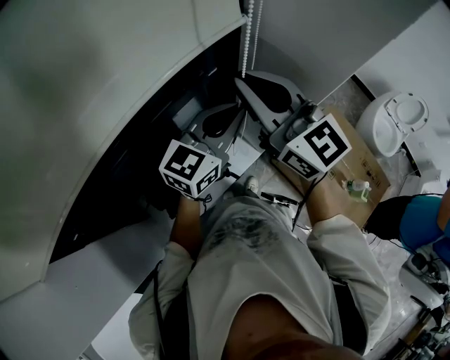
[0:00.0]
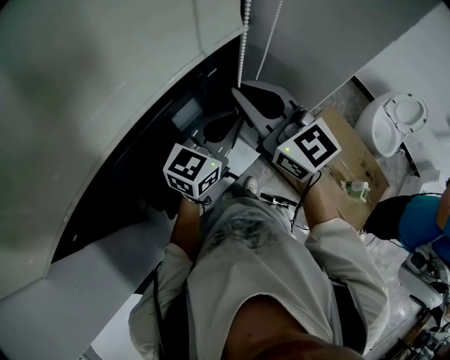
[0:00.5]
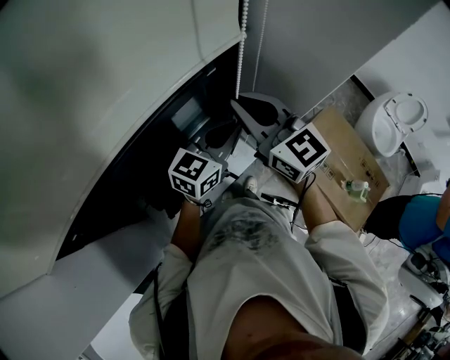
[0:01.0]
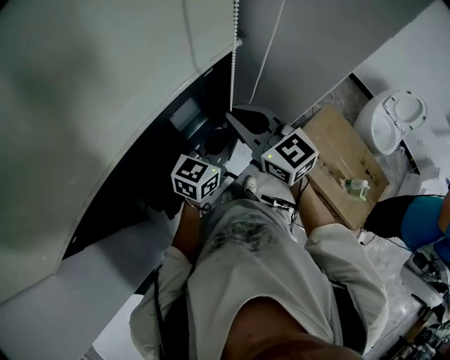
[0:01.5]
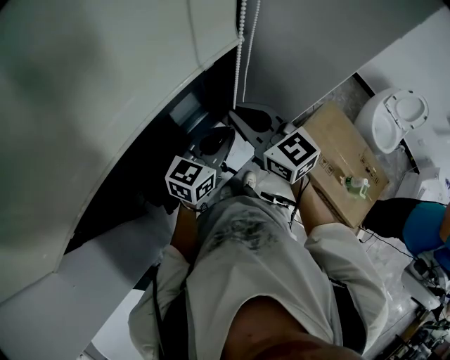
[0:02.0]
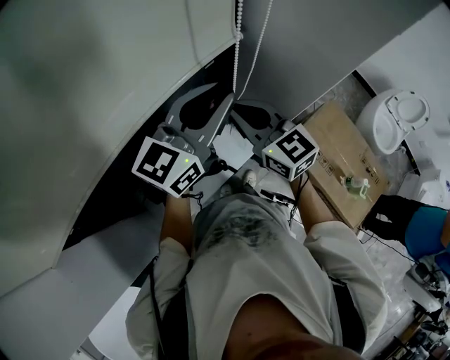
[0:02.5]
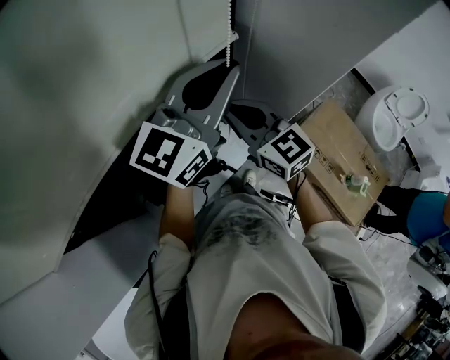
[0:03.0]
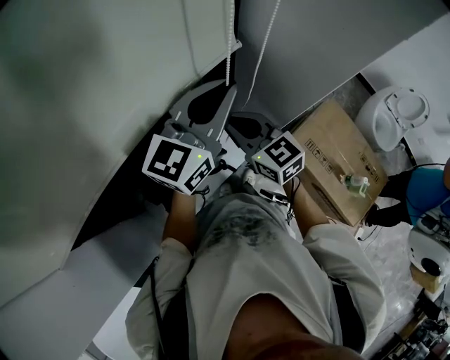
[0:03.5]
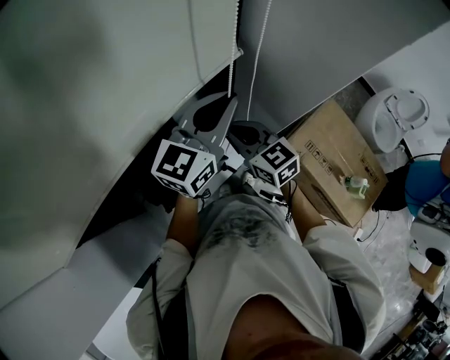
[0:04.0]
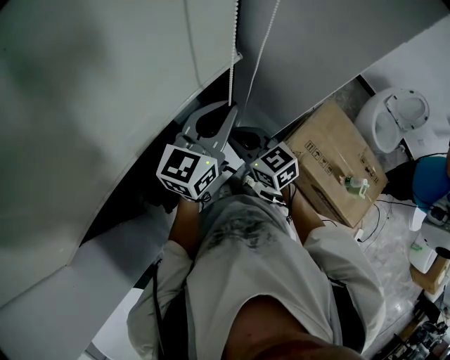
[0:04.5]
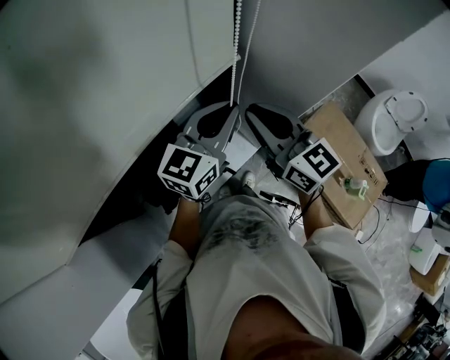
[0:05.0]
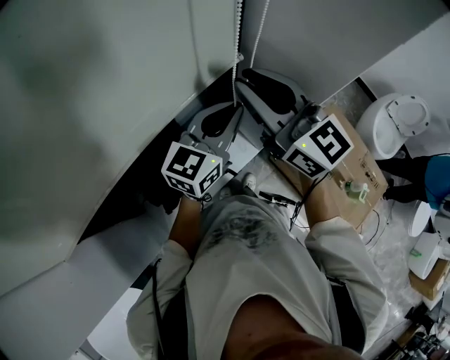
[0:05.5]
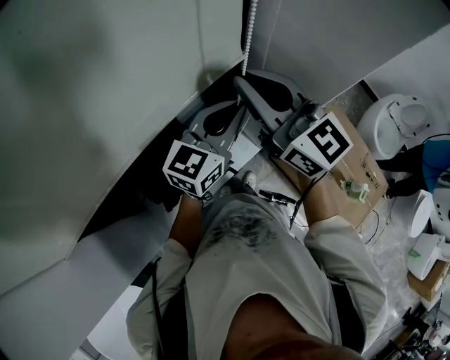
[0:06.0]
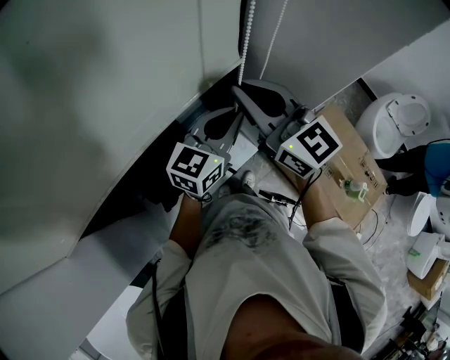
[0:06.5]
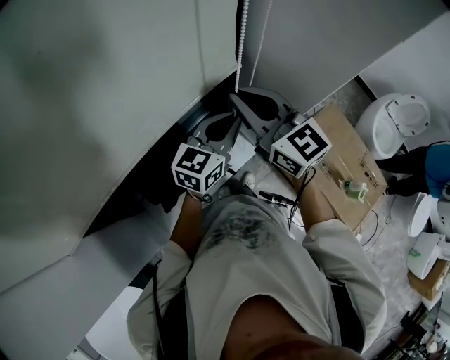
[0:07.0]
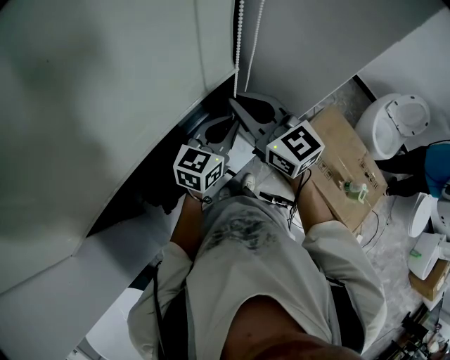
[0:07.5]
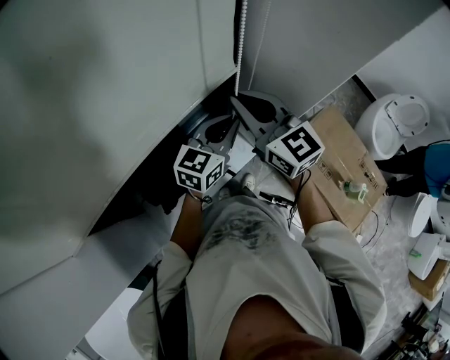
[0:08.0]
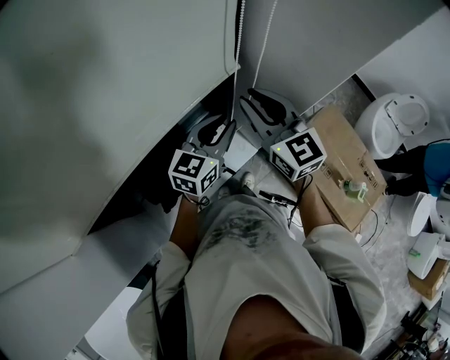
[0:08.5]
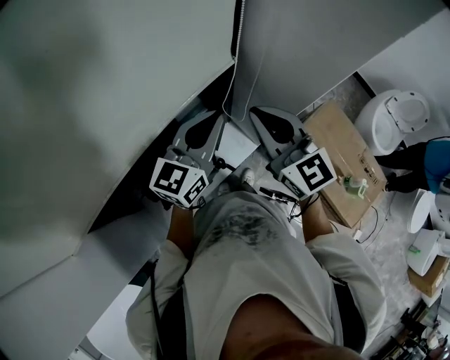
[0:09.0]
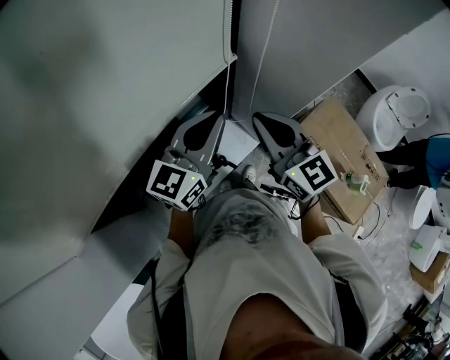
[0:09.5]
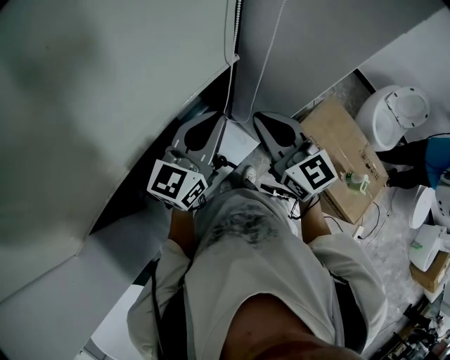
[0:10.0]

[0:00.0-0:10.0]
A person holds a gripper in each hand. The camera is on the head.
0:00.0 to 0:02.0: The grippers both shift downward by about 10 cm.
0:02.0 to 0:04.0: The right gripper shifts some 10 cm downward. Meanwhile the left gripper goes approximately 10 cm upward.
0:04.0 to 0:06.0: The right gripper shifts about 20 cm upward, and changes its angle by about 30 degrees.
0:06.0 to 0:08.0: Both grippers travel together downward, approximately 10 cm.
0:08.0 to 0:10.0: The right gripper moves backward, approximately 5 cm. Meanwhile the left gripper heads upward, covering approximately 10 cm.

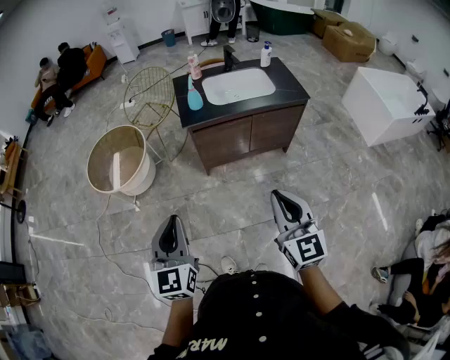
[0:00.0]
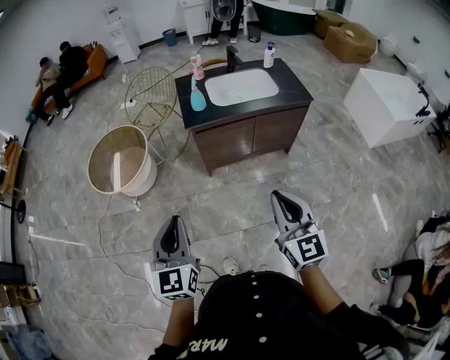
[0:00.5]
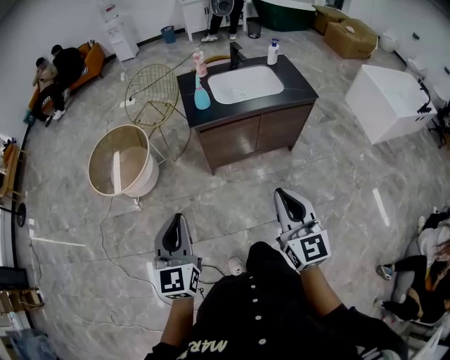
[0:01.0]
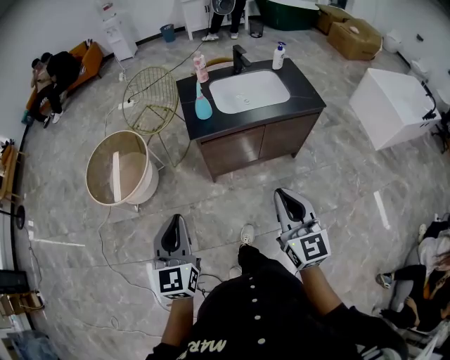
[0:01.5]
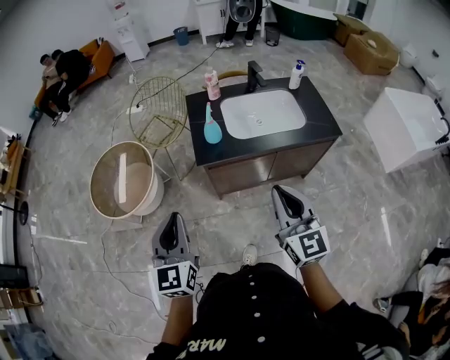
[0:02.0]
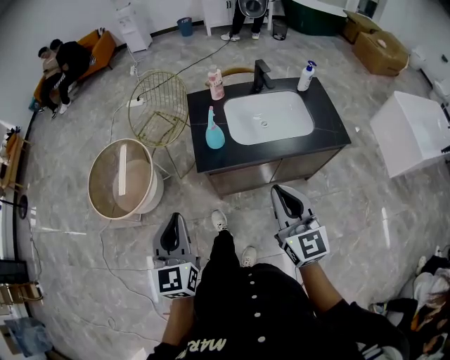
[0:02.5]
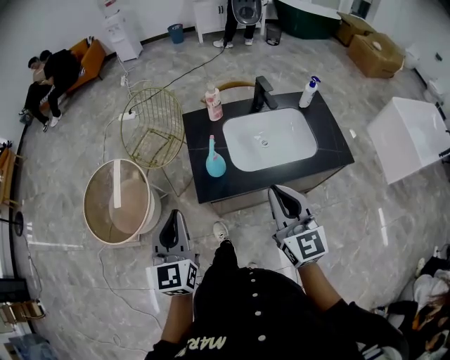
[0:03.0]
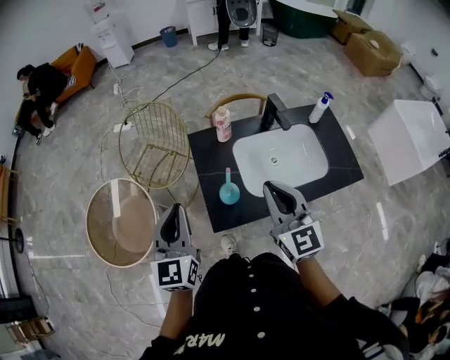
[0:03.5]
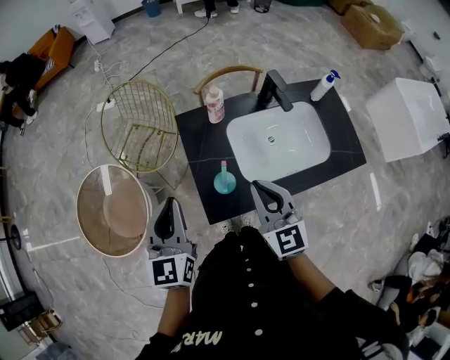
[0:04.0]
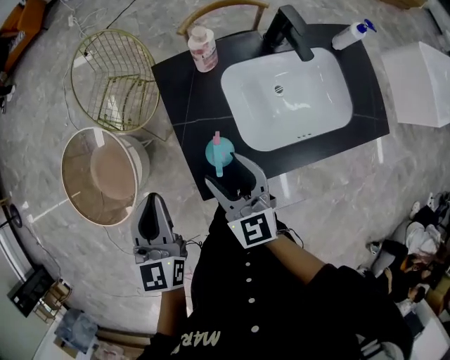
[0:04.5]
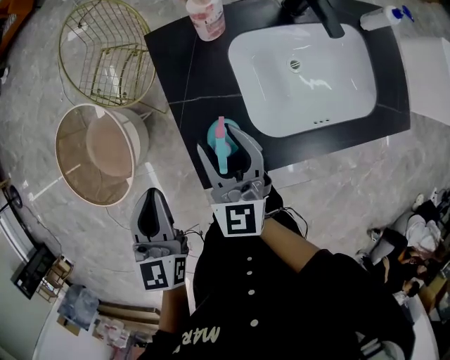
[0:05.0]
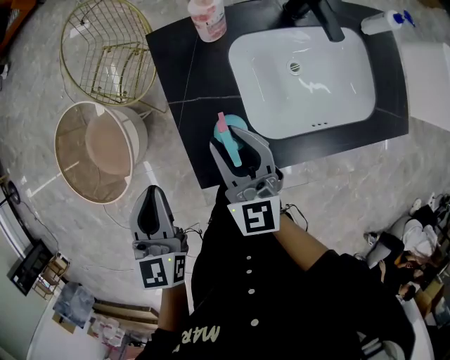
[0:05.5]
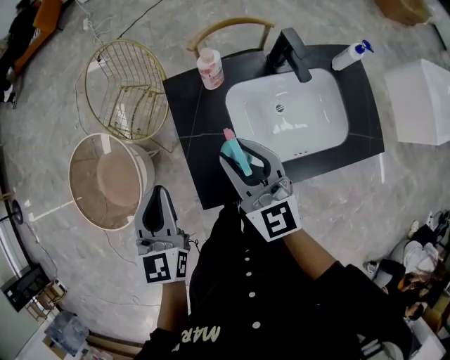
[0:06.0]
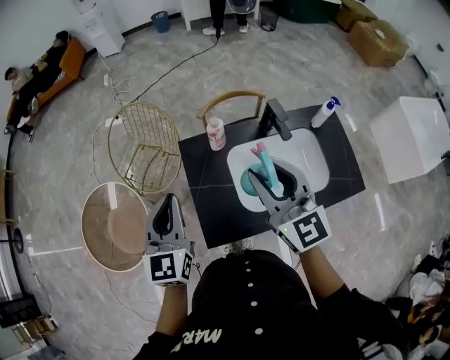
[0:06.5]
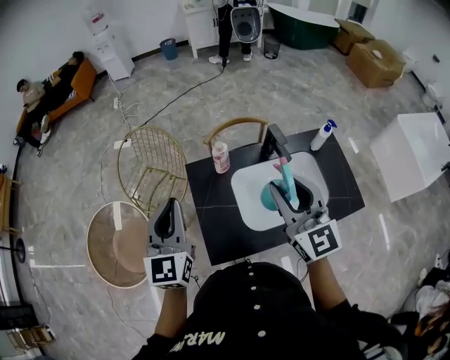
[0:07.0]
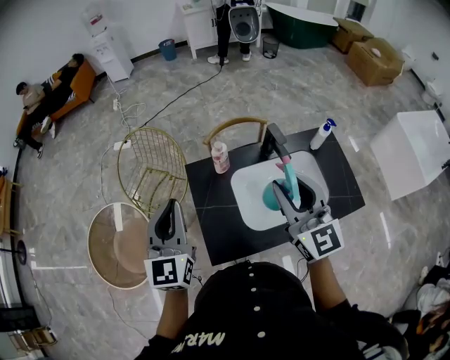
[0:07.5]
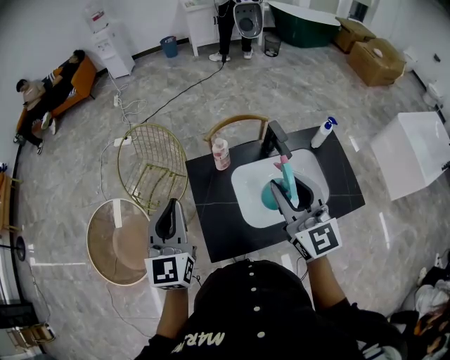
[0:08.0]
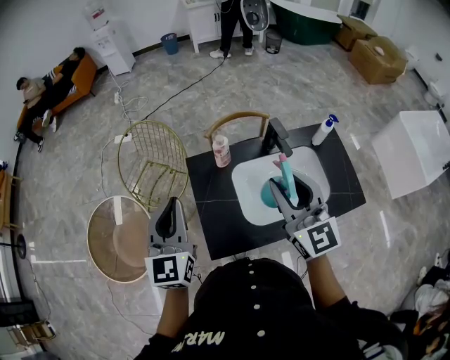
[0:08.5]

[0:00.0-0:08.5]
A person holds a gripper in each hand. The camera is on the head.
0:00.0 to 0:02.0: Both grippers travel together forward, some 25 cm.
0:02.0 to 0:04.0: Both grippers move forward, some 35 cm.
0:04.0 to 0:06.5: The left gripper moves forward, approximately 5 cm, and goes downward and returns, some 15 cm each way; the right gripper goes roughly 15 cm upward and forward, and opens.
0:06.5 to 0:08.5: There are only small adjustments of the grippers.

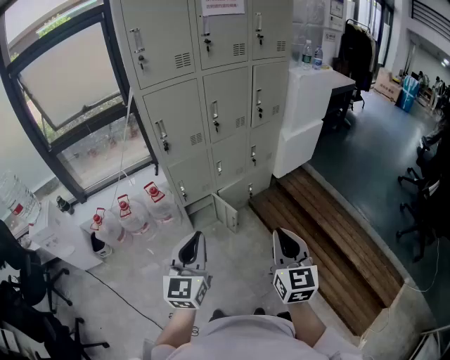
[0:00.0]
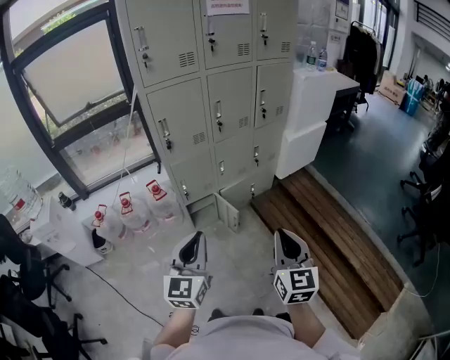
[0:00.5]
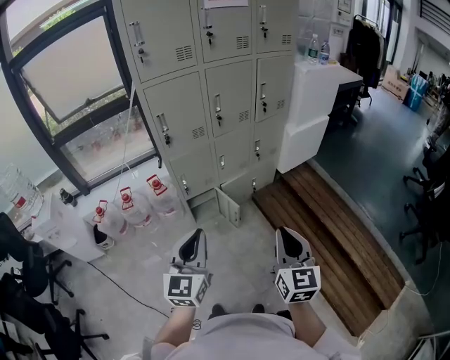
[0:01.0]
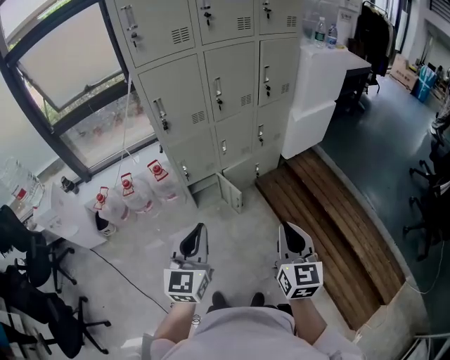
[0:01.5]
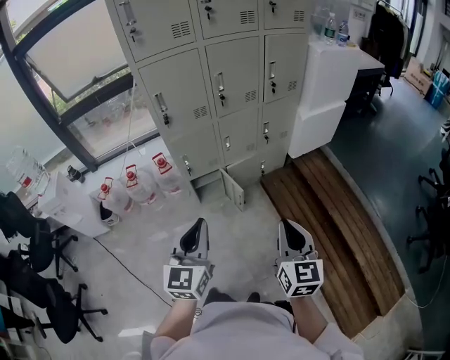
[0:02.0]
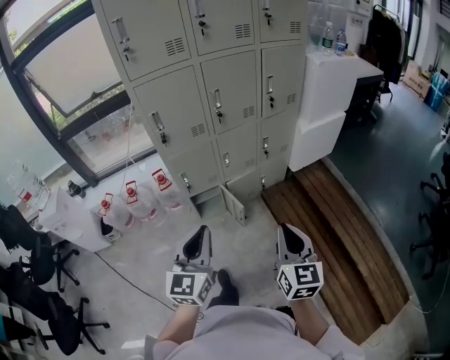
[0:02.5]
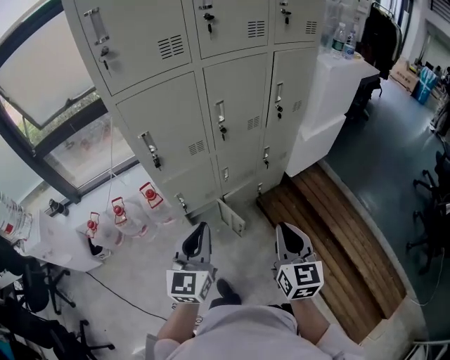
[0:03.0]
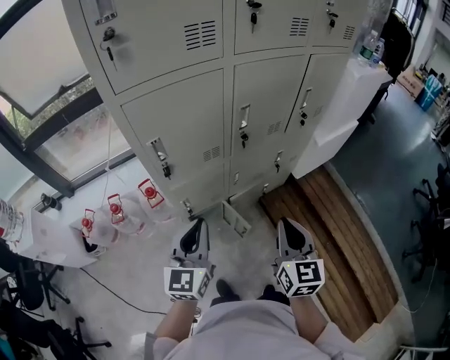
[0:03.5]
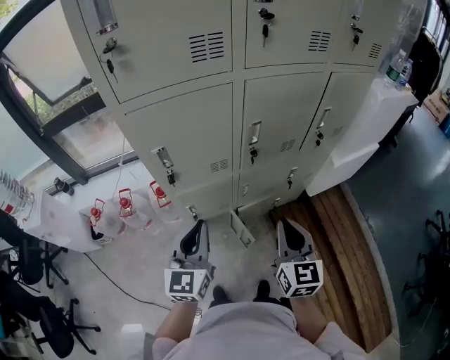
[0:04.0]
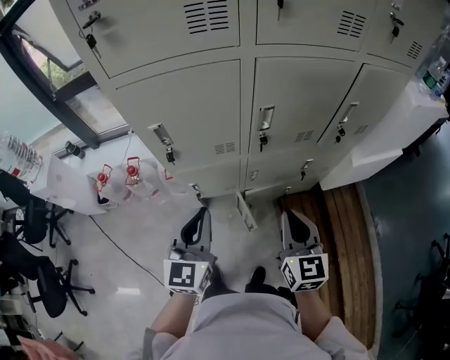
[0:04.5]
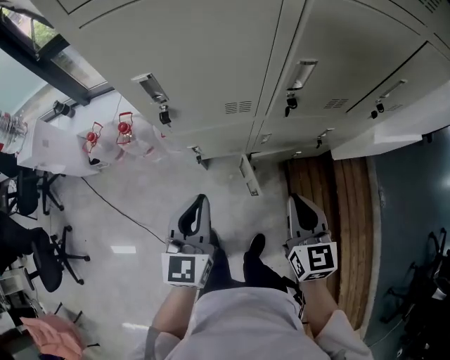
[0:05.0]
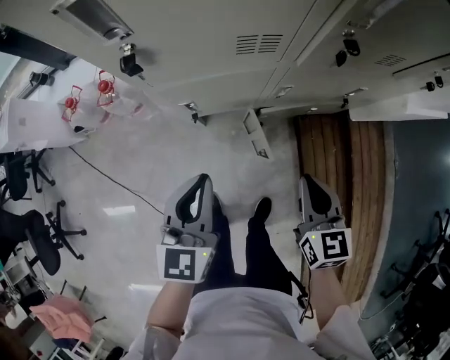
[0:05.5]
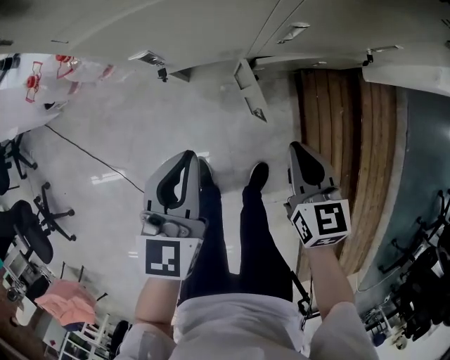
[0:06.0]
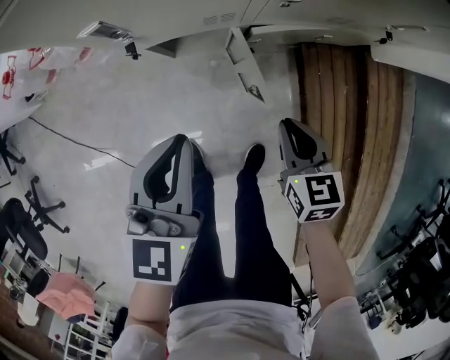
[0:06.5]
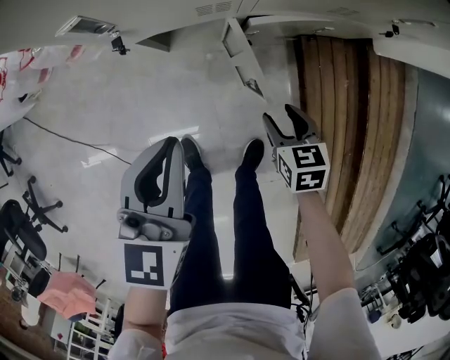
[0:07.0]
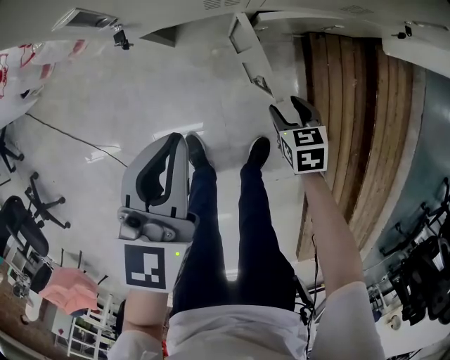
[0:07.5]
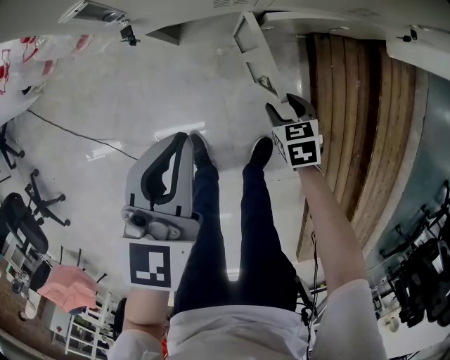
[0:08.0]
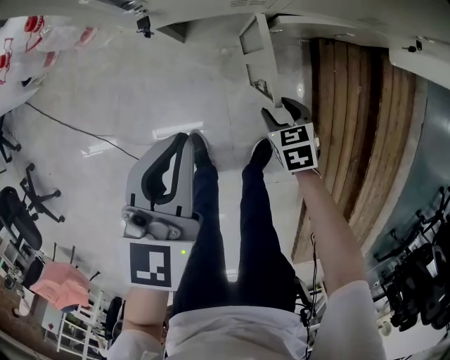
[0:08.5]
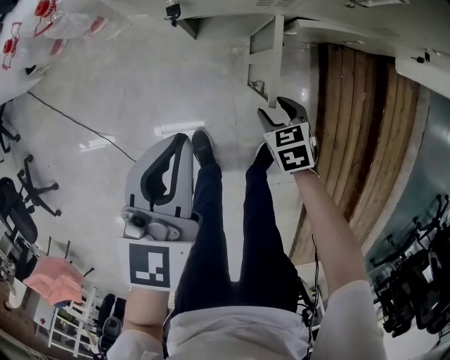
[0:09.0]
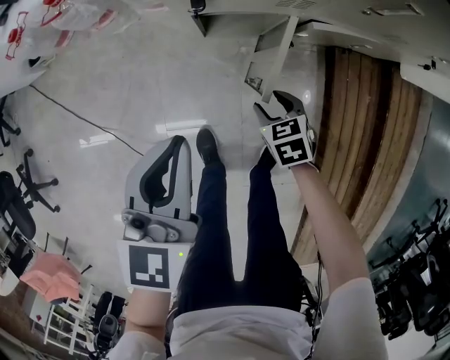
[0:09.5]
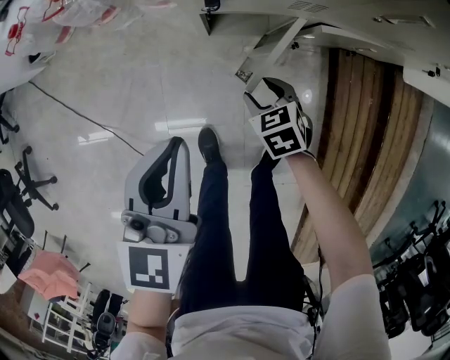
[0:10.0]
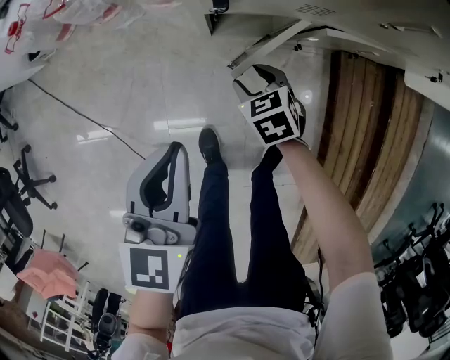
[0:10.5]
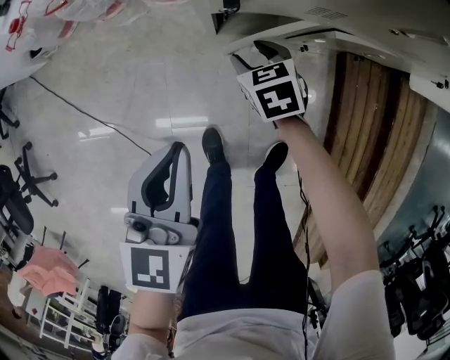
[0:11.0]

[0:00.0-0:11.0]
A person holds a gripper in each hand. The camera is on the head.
0:00.0 to 0:02.0: The left gripper is displaced to the right by some 5 cm, while the right gripper is displaced to the right and downward by about 10 cm.
0:02.0 to 0:03.5: Both grippers move forward and to the left, some 35 cm.
0:03.5 to 0:05.5: The left gripper goes roughly 20 cm downward, and changes its angle by approximately 20 degrees. Meanwhile the right gripper moves downward and forward, roughly 30 cm, and swivels approximately 30 degrees.
0:05.5 to 0:07.5: The left gripper is displaced downward by some 25 cm. The right gripper is displaced downward by about 40 cm, angles its fingers downward, by approximately 30 degrees, and opens.
0:07.5 to 0:09.0: The right gripper travels to the left by some 10 cm. The left gripper travels to the left by approximately 5 cm.
0:09.0 to 0:11.0: The left gripper is displaced to the left by about 10 cm, while the right gripper heads forward and to the left, covering about 20 cm.
